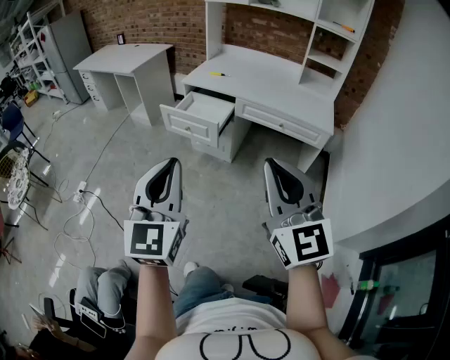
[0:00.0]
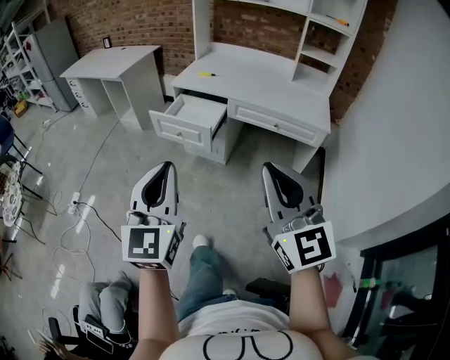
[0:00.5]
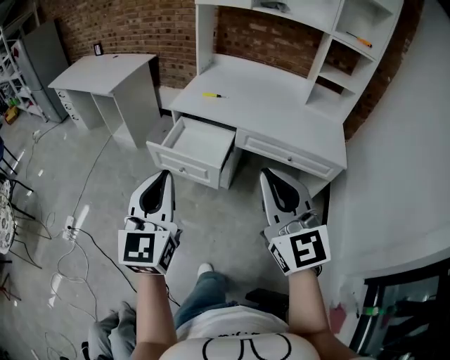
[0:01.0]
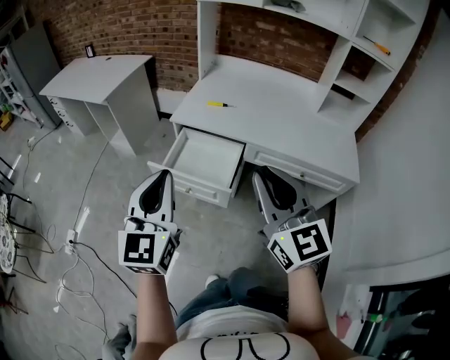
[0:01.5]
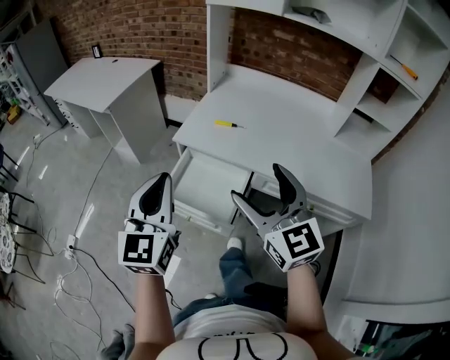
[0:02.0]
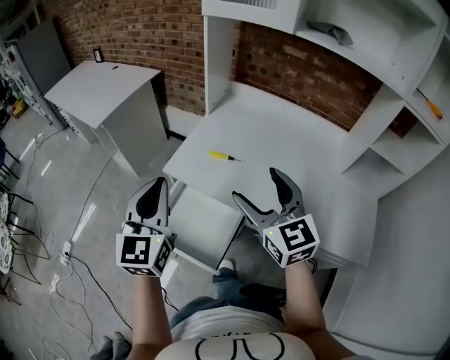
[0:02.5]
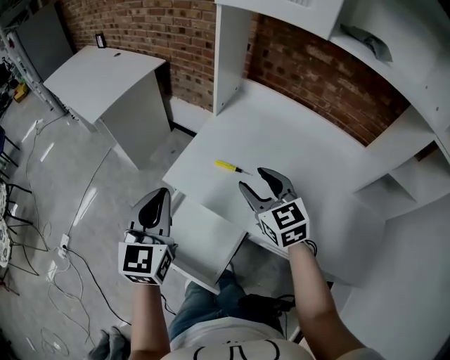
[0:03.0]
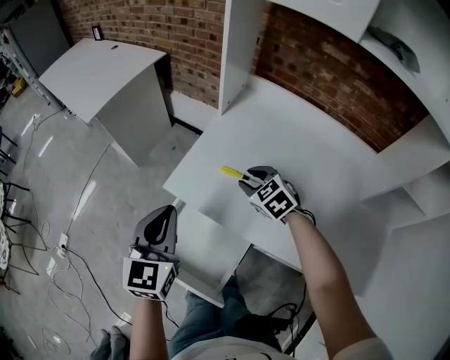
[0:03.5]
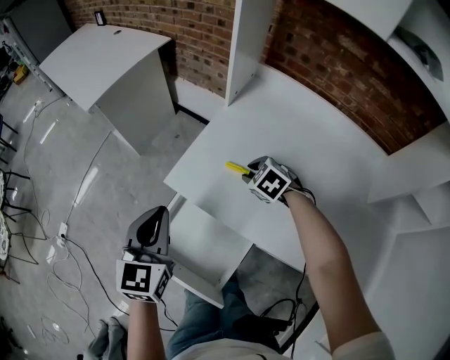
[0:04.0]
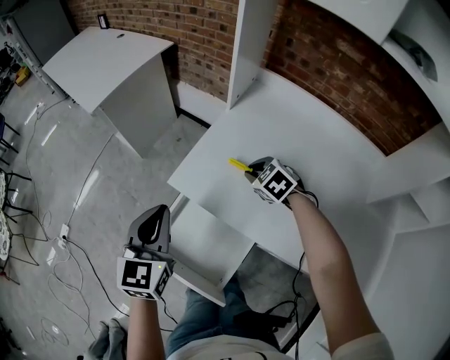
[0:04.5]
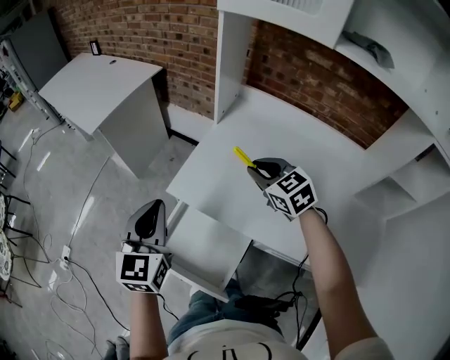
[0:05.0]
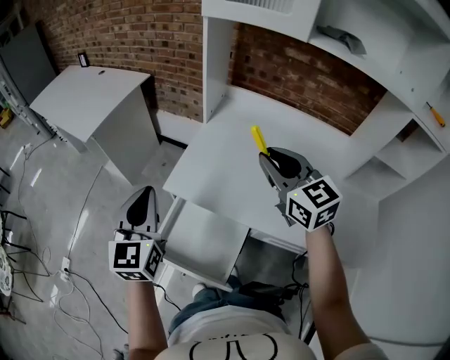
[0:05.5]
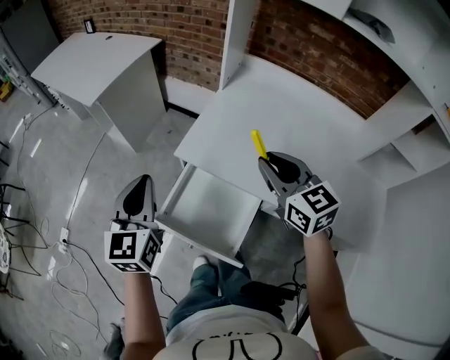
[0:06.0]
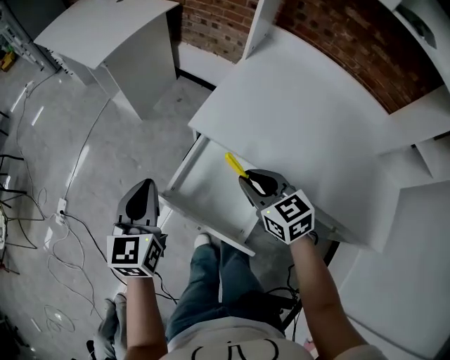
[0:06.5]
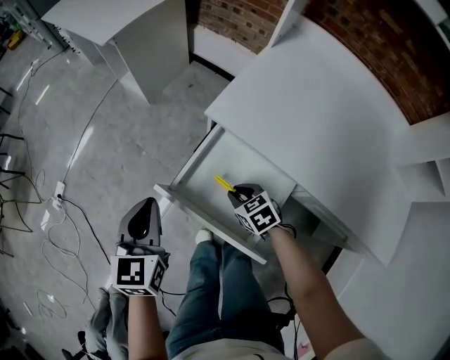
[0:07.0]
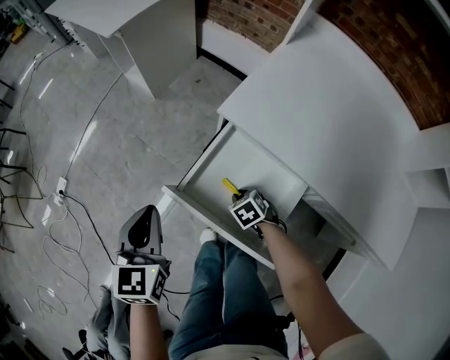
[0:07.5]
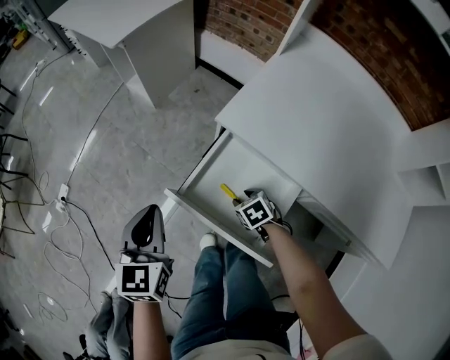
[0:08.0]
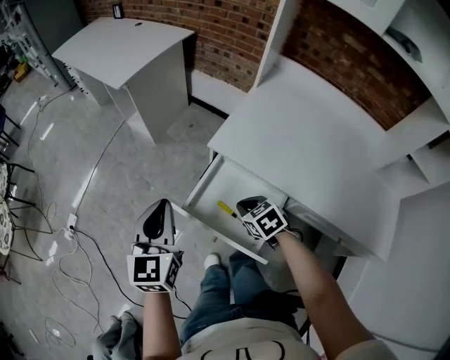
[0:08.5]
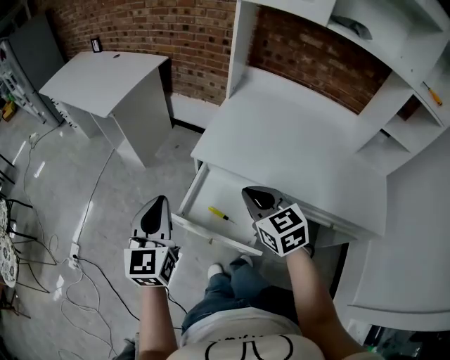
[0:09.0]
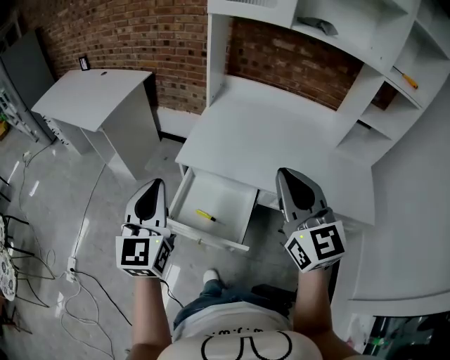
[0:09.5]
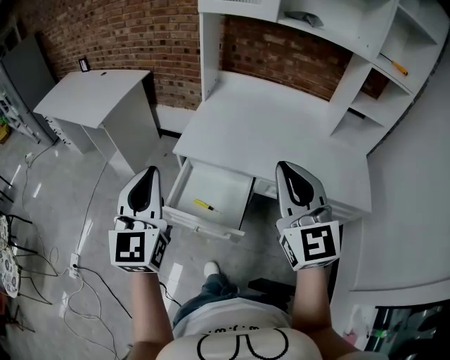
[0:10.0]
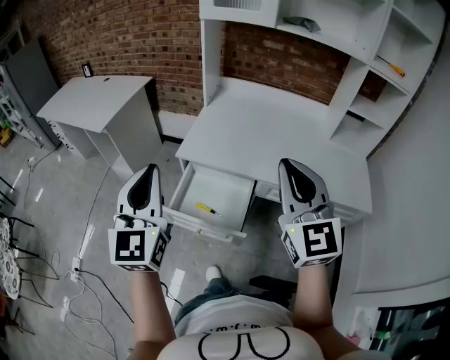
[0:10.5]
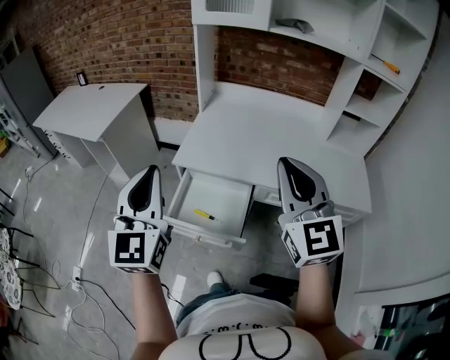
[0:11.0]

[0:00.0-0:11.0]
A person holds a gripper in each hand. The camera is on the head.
0:00.0 to 0:02.0: The pair of grippers is taken forward, approximately 60 cm. The right gripper opens its fingers.
0:02.0 to 0:03.5: The right gripper goes some 50 cm forward and downward, points its fingers some 40 degrees further downward, and closes up. Meanwhile the left gripper moves forward, some 25 cm.
0:03.5 to 0:05.5: The left gripper shifts some 10 cm upward and to the left, while the right gripper moves upward and backward, some 25 cm, and angles its fingers upward, by about 40 degrees.
0:05.5 to 0:07.5: The right gripper heads downward and to the left, covering some 60 cm, and angles its fingers downward, by some 60 degrees, while the left gripper shifts about 30 cm downward and to the left, and turns by some 30 degrees.
0:07.5 to 0:09.0: The right gripper is displaced upward by about 40 cm, and points its fingers some 40 degrees further upward. The left gripper goes about 15 cm upward, and swivels some 20 degrees.
0:09.0 to 0:11.0: The left gripper goes some 15 cm upward and to the right. Meanwhile the right gripper is displaced upward, backward and to the right by approximately 25 cm, and angles its fingers upward, by approximately 30 degrees.

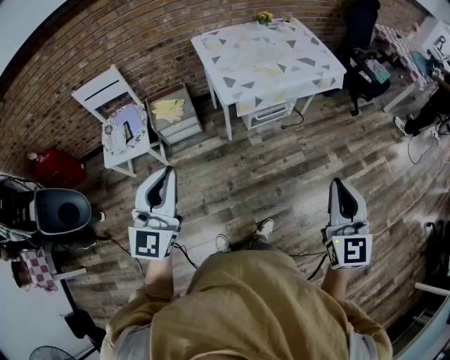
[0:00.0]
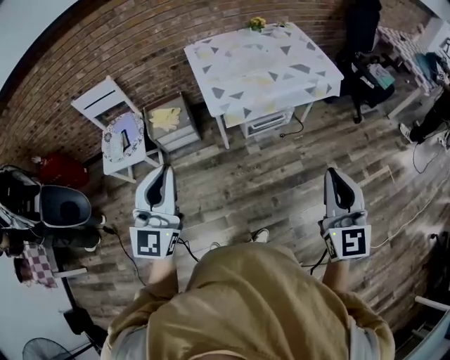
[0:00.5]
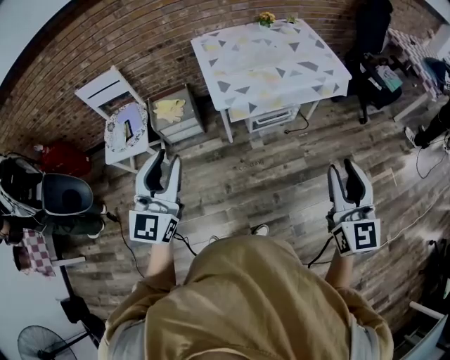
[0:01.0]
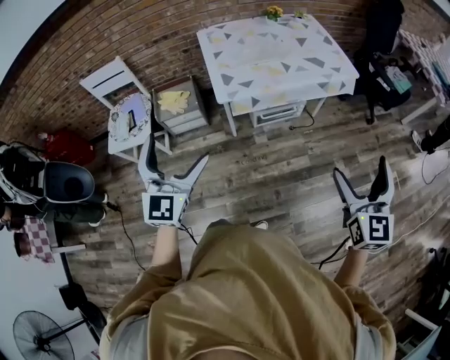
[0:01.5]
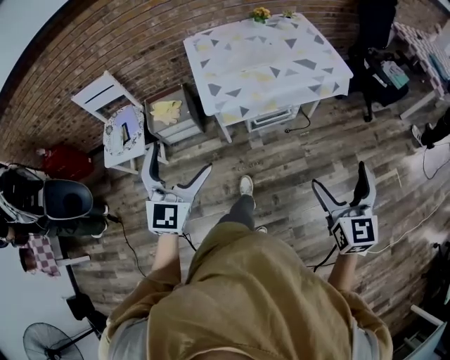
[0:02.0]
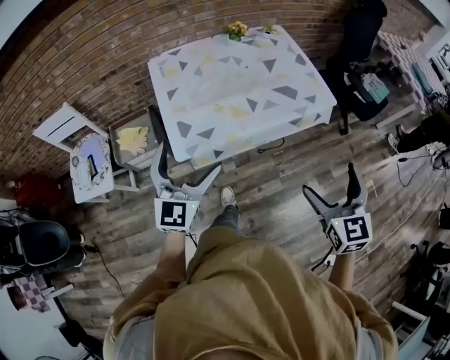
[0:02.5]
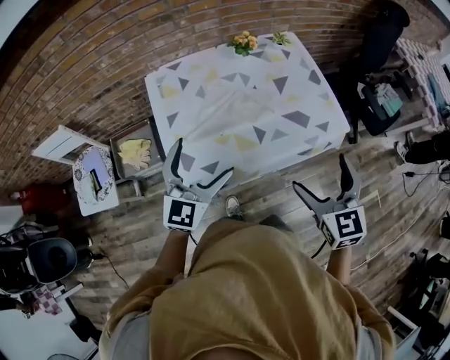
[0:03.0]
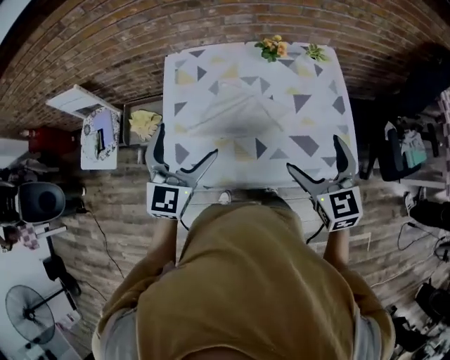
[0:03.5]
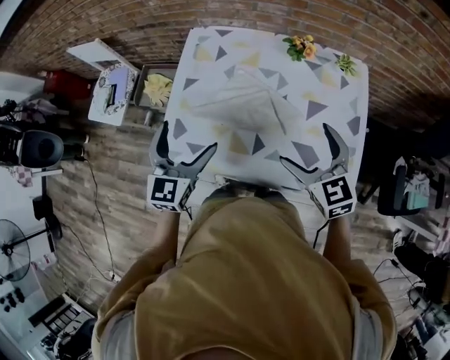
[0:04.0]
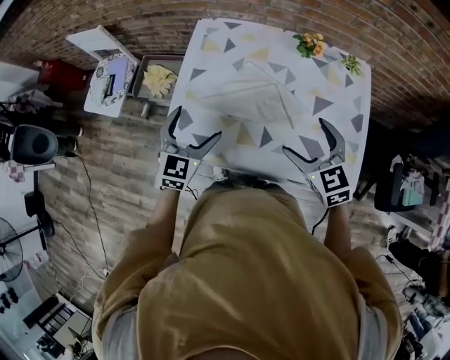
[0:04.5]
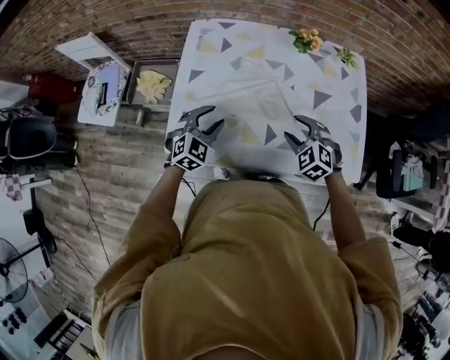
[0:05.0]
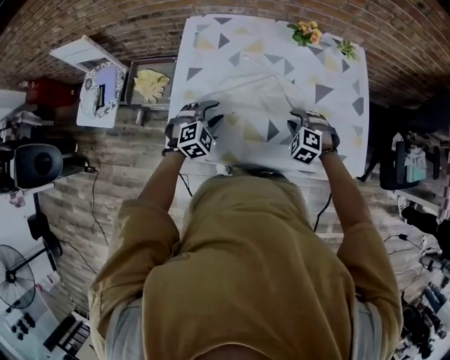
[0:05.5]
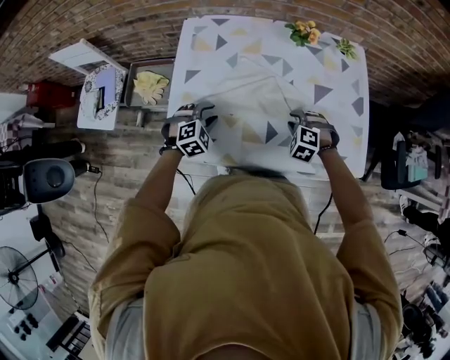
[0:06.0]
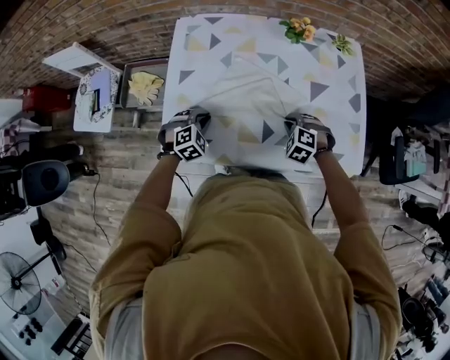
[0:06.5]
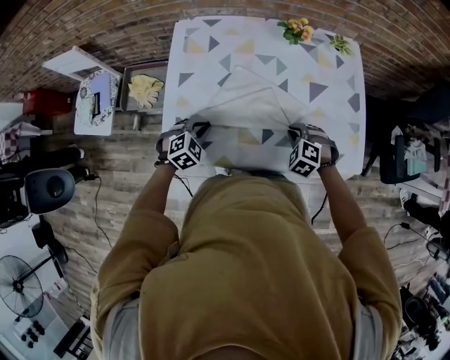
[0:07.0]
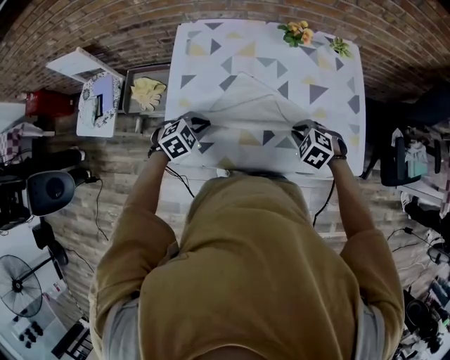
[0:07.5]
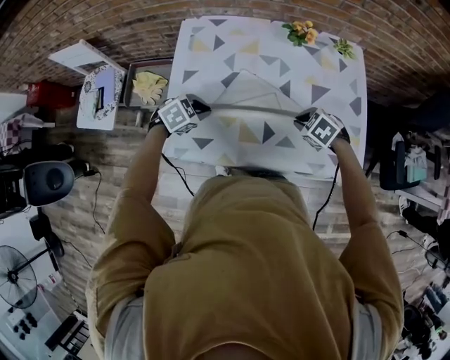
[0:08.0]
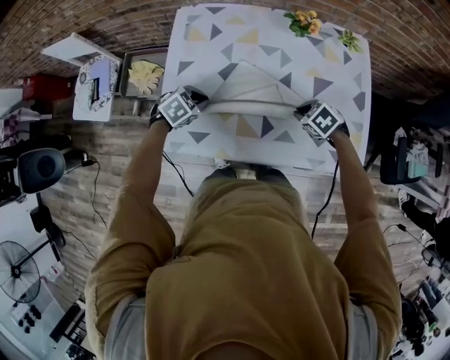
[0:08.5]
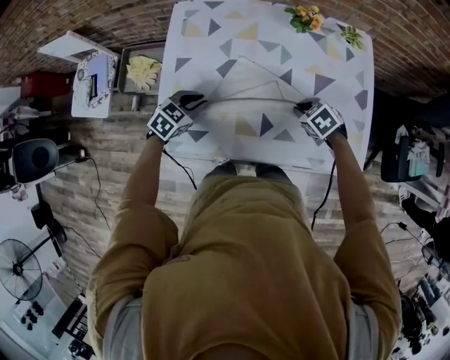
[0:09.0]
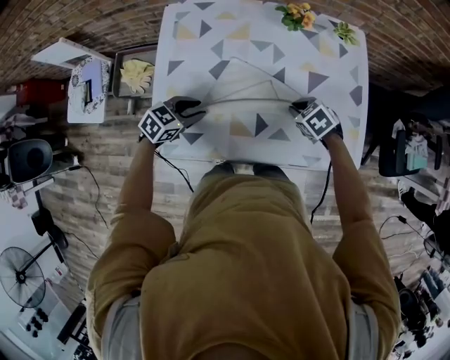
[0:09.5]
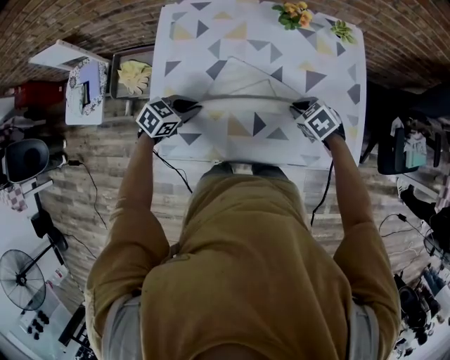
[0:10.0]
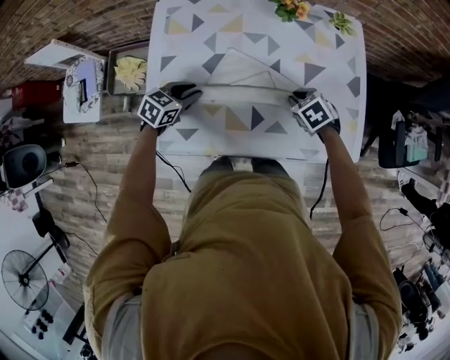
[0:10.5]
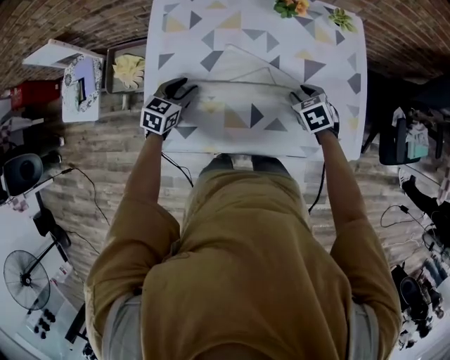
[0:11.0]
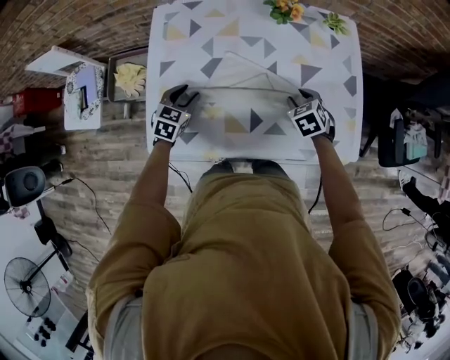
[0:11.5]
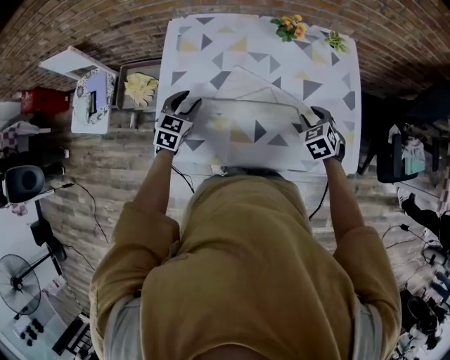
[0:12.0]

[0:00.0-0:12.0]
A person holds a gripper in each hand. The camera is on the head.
0:00.0 to 0:02.0: Both grippers move to the right and forward, some 20 cm. The right gripper opens its fingers. The left gripper opens up.
0:02.0 to 0:04.0: The two grippers travel together, some 50 cm. The left gripper changes its angle by about 30 degrees, while the right gripper swivels about 50 degrees.
0:04.0 to 0:06.0: The grippers both shift downward by some 25 cm. The left gripper tilts its fingers roughly 40 degrees downward, and closes; the right gripper tips its fingers downward by approximately 40 degrees, and closes its fingers.
0:06.0 to 0:08.0: The left gripper changes its angle by about 30 degrees; the right gripper rotates some 30 degrees.
0:08.0 to 0:10.0: The left gripper changes its angle by roughly 20 degrees.
0:10.0 to 0:12.0: The right gripper ends up some 5 cm from where it was, and turns by roughly 30 degrees. Meanwhile the left gripper ends up approximately 5 cm from where it was, and rotates some 30 degrees.

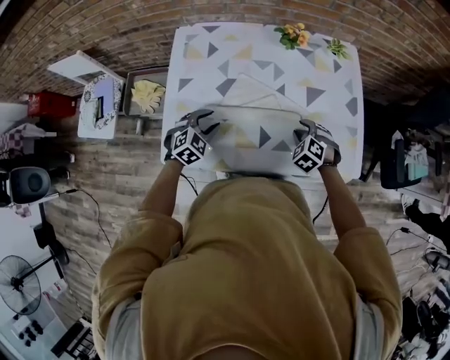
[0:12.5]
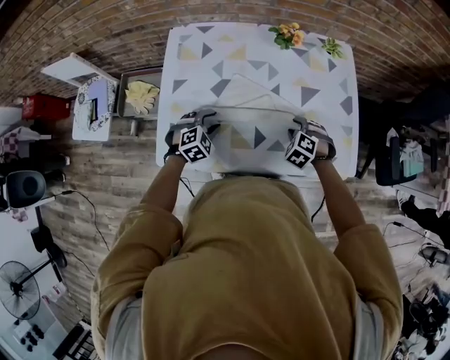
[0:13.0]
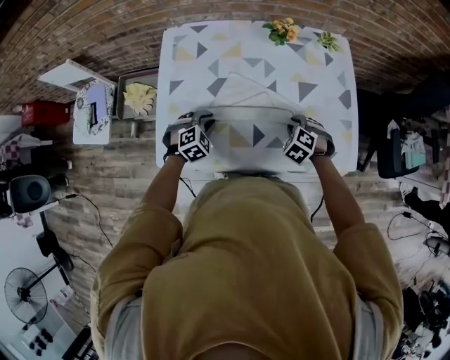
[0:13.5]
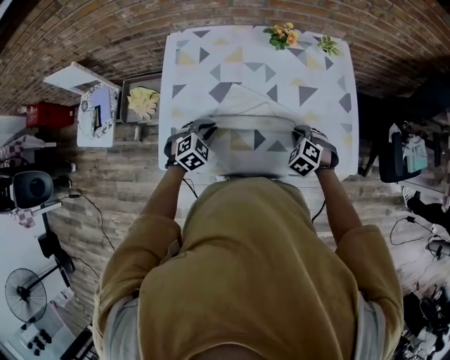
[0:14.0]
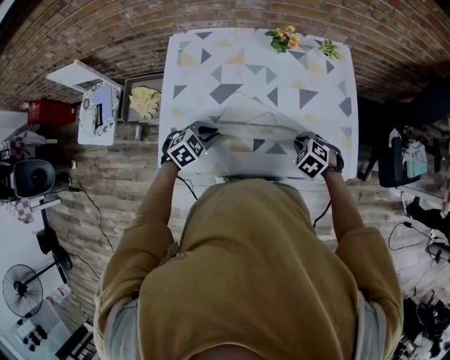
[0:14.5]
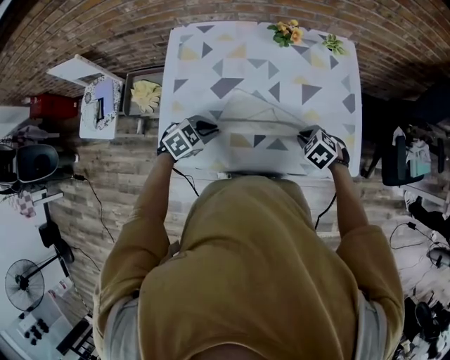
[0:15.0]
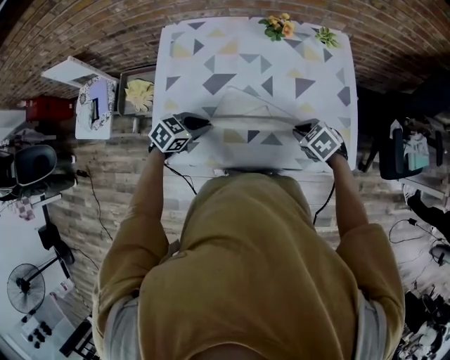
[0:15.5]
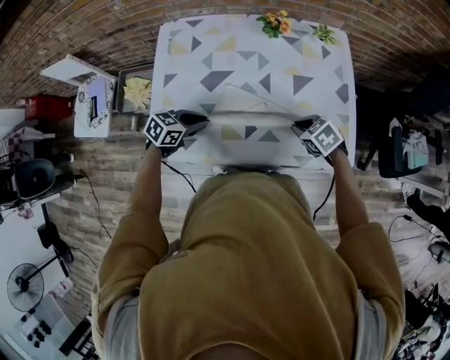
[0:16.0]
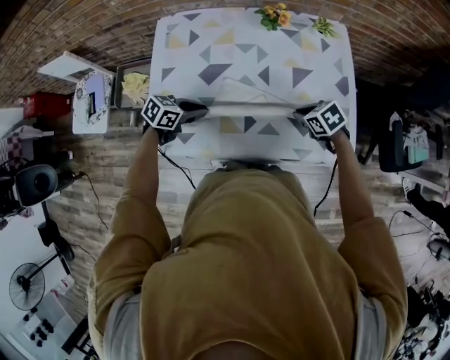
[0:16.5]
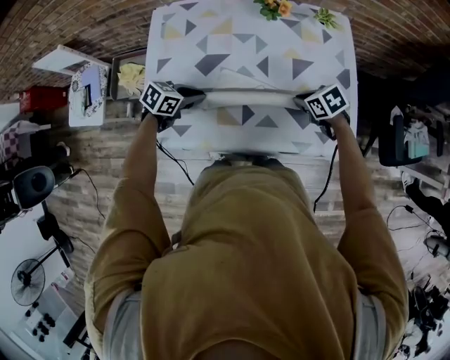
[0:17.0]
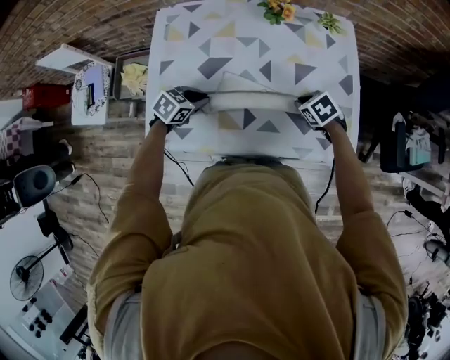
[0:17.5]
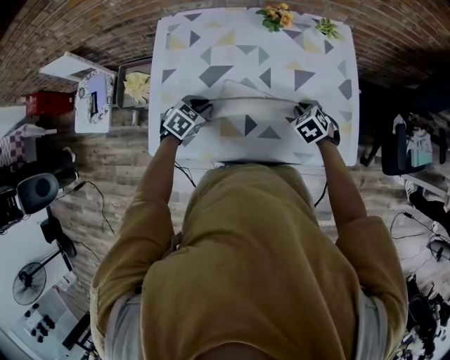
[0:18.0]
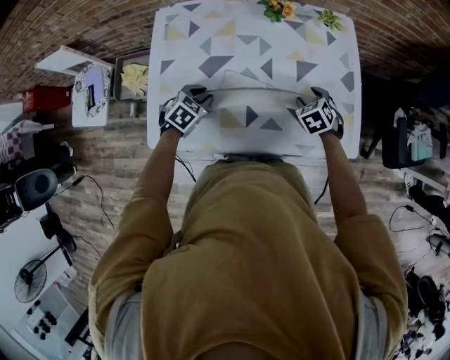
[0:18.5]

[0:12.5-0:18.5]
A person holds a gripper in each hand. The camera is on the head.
0:12.5 to 0:14.5: There are only small adjustments of the grippers.
0:14.5 to 0:16.5: The right gripper changes its angle by about 30 degrees. The left gripper rotates about 40 degrees.
0:16.5 to 0:18.5: The right gripper changes place by about 5 cm, and rotates approximately 30 degrees; the left gripper changes its angle by approximately 30 degrees.
